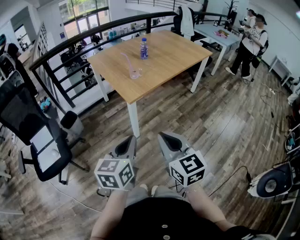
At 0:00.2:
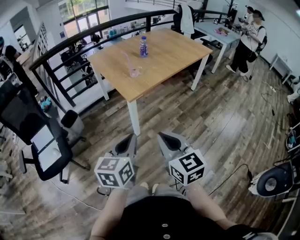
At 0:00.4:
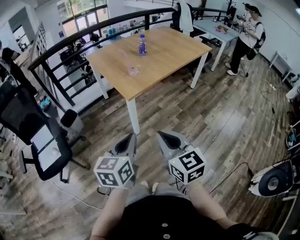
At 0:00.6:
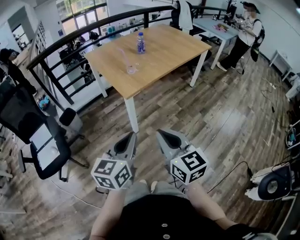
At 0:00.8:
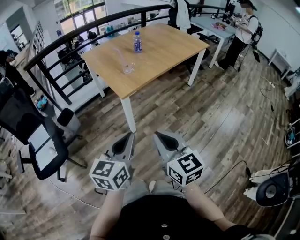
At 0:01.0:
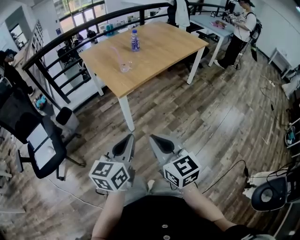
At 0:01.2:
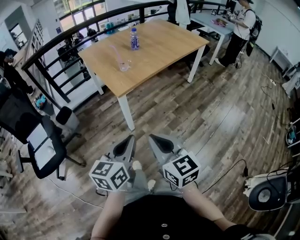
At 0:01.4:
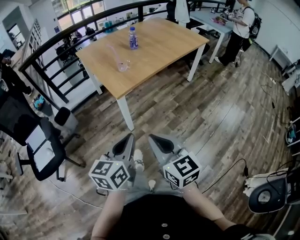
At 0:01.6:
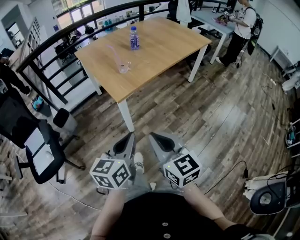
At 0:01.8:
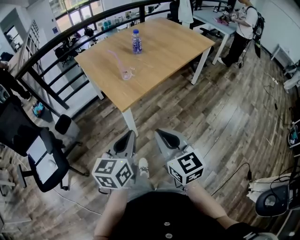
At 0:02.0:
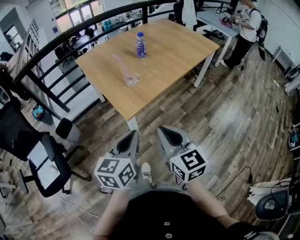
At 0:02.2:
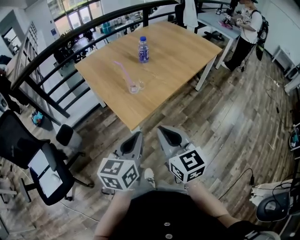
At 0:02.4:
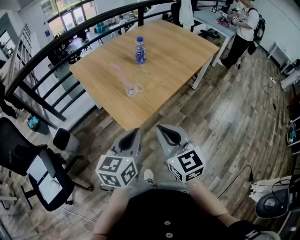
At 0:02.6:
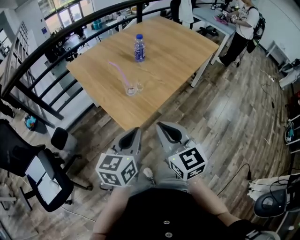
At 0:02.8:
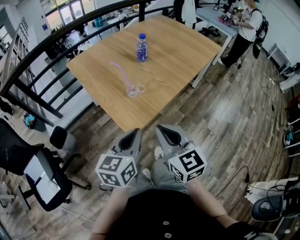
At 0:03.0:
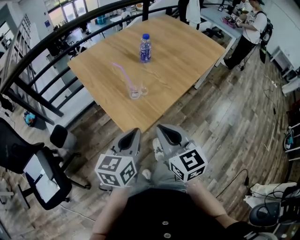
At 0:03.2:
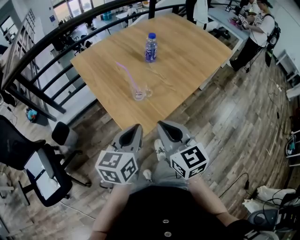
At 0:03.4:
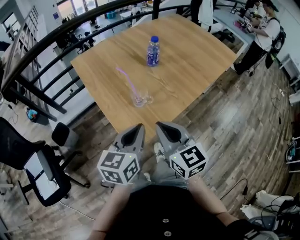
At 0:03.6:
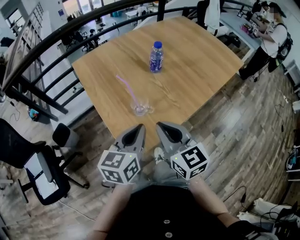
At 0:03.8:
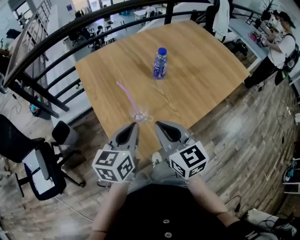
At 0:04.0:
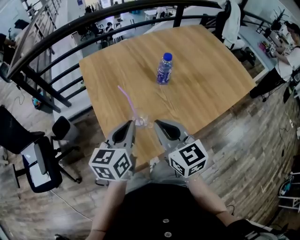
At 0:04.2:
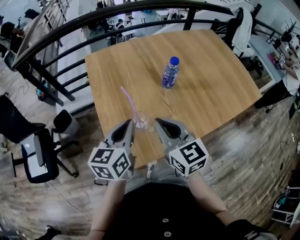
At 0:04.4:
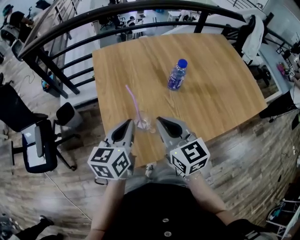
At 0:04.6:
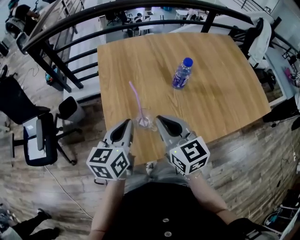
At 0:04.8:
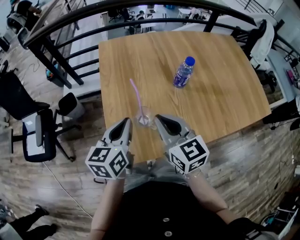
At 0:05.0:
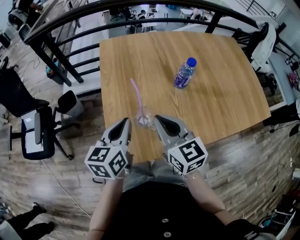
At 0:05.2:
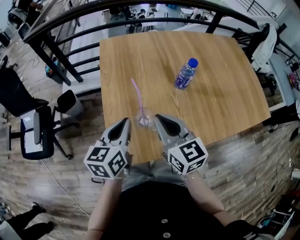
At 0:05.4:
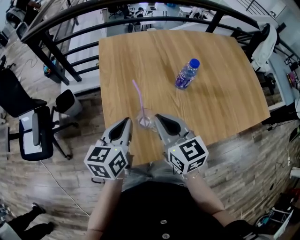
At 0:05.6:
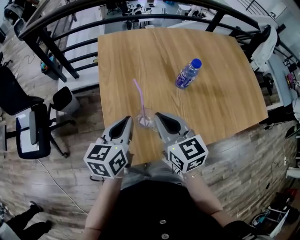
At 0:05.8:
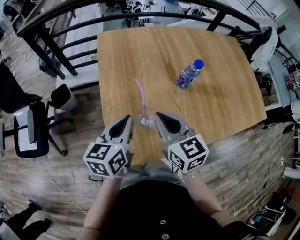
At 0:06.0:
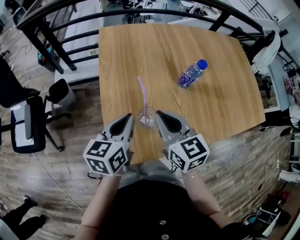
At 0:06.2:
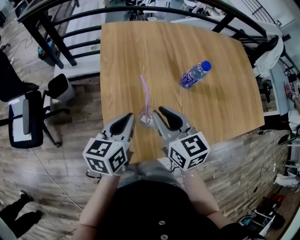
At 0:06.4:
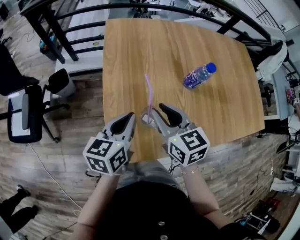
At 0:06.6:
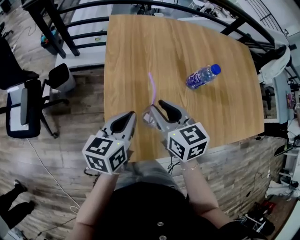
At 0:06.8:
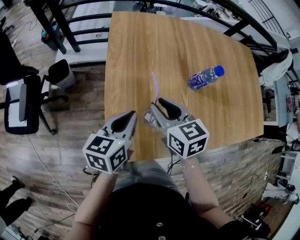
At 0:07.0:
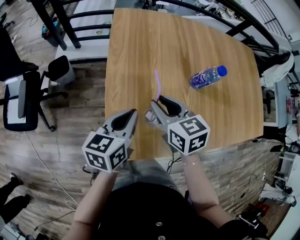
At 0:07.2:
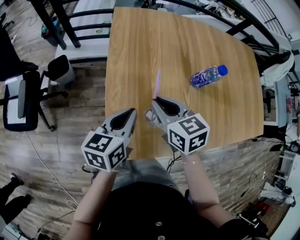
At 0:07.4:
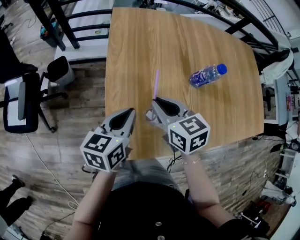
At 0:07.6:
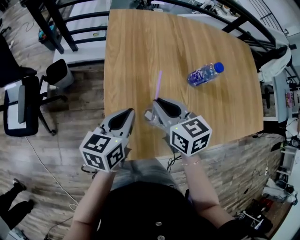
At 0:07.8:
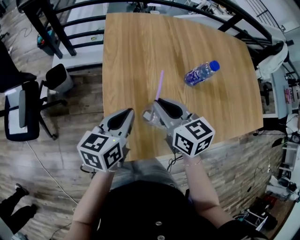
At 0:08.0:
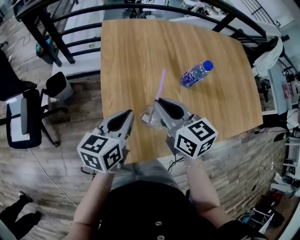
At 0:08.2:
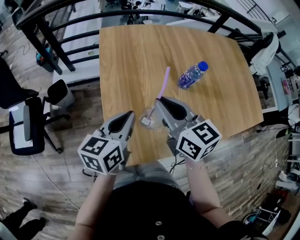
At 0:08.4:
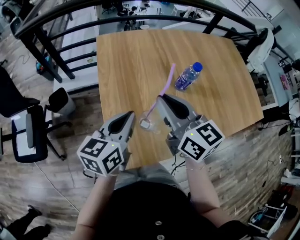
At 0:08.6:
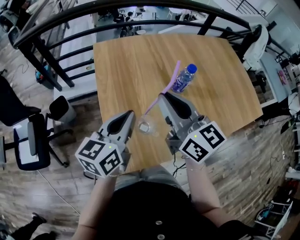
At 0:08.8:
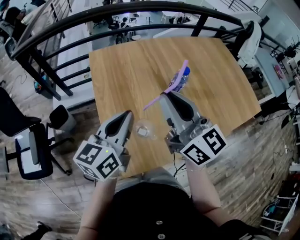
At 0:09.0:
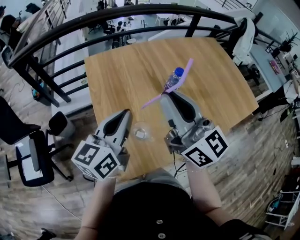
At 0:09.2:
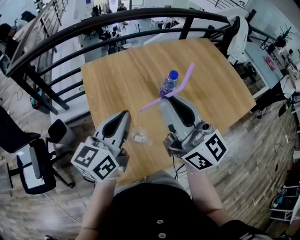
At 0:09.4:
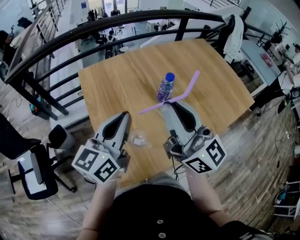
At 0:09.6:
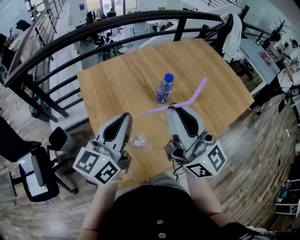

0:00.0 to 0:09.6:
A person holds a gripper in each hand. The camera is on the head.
0:00.0 to 0:01.6: The left gripper moves forward and to the right, about 10 cm. The right gripper goes roughly 10 cm forward.
0:01.6 to 0:03.2: The grippers both shift forward by roughly 35 cm.
0:03.2 to 0:04.8: The left gripper moves about 20 cm, and rotates about 30 degrees; the right gripper shifts by about 25 cm, and swivels roughly 30 degrees.
0:04.8 to 0:06.4: The right gripper moves forward, about 5 cm, and opens its fingers, while the left gripper changes place by about 5 cm.
0:06.4 to 0:08.0: The grippers stay close to where they were, moving slightly.
0:08.0 to 0:09.6: The left gripper goes about 15 cm upward, and changes its angle by approximately 30 degrees, while the right gripper travels upward and to the right by roughly 25 cm, and tilts its fingers about 50 degrees upward.

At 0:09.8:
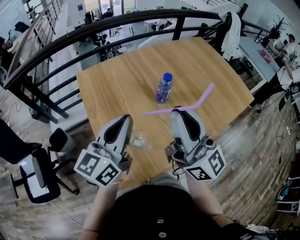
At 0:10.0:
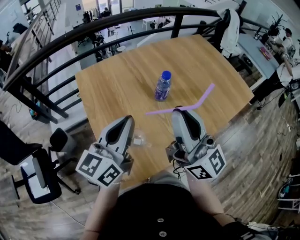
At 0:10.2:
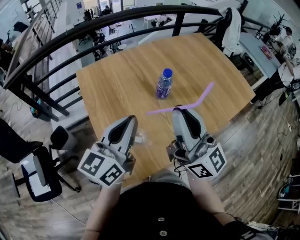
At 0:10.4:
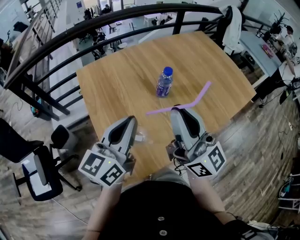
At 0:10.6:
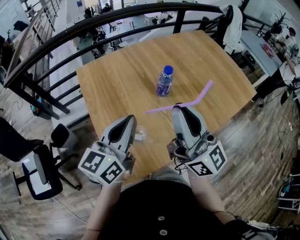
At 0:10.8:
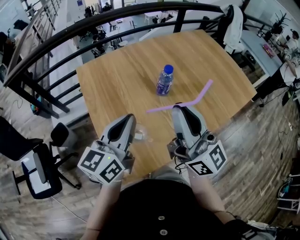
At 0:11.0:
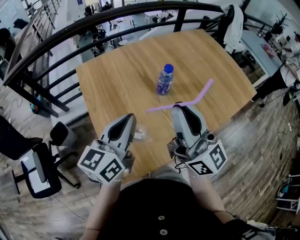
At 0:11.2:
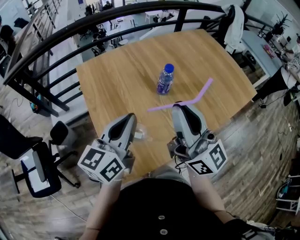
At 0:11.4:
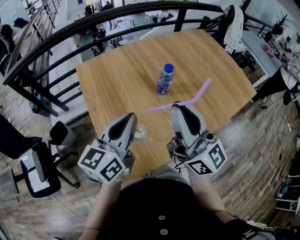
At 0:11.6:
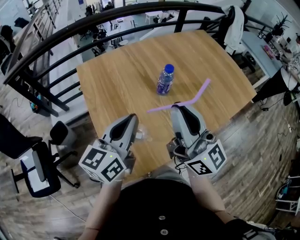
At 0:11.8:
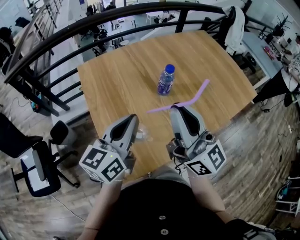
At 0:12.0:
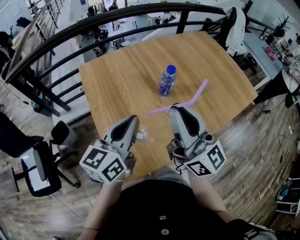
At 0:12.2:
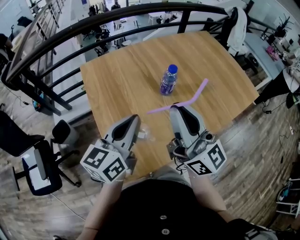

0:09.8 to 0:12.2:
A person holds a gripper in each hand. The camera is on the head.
0:09.8 to 0:12.2: There are only small adjustments of the grippers.

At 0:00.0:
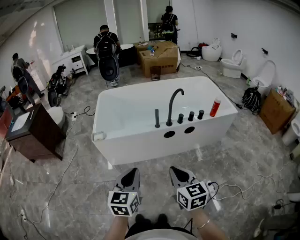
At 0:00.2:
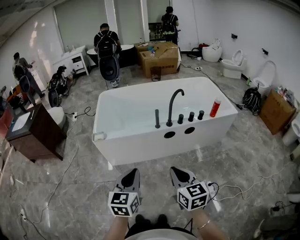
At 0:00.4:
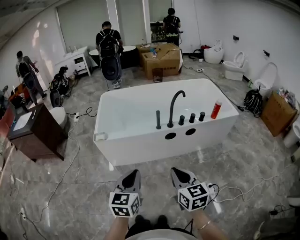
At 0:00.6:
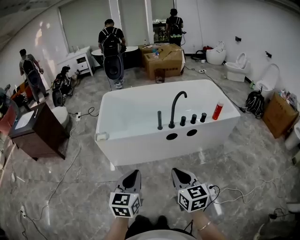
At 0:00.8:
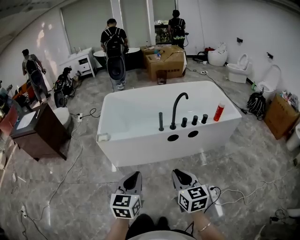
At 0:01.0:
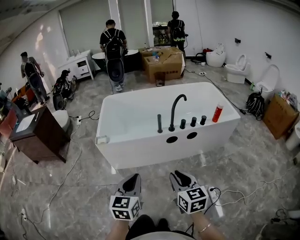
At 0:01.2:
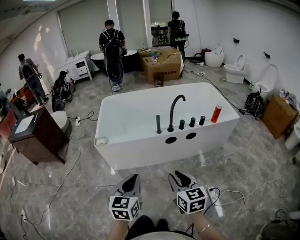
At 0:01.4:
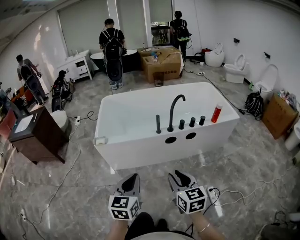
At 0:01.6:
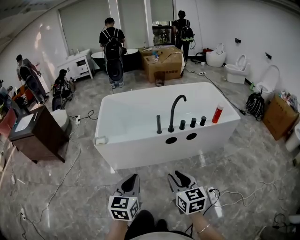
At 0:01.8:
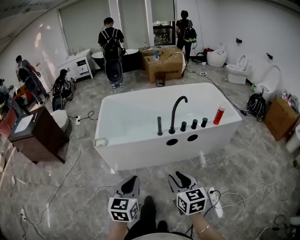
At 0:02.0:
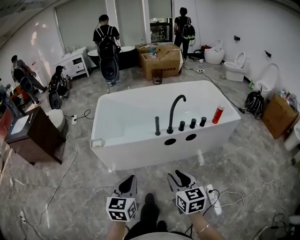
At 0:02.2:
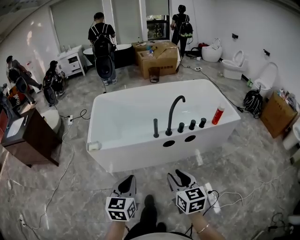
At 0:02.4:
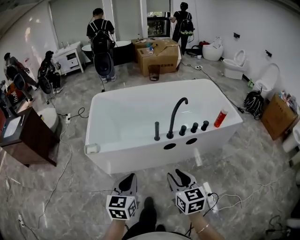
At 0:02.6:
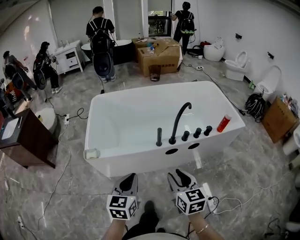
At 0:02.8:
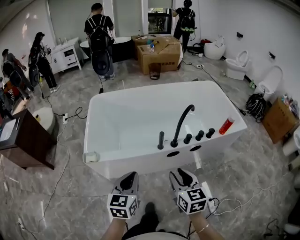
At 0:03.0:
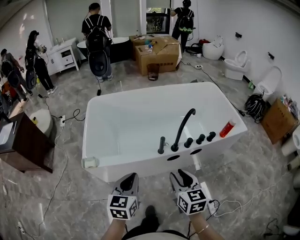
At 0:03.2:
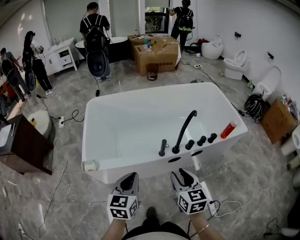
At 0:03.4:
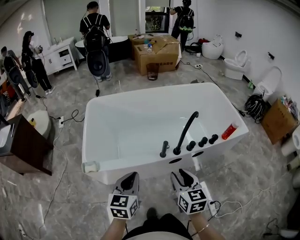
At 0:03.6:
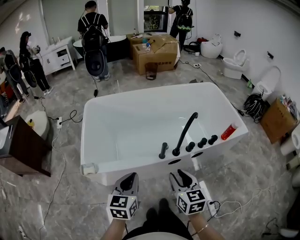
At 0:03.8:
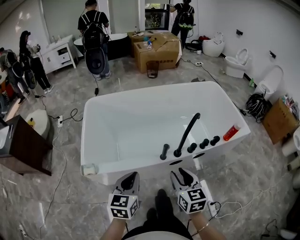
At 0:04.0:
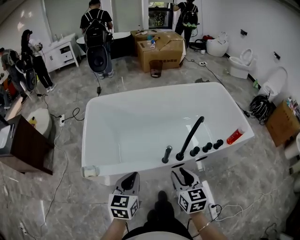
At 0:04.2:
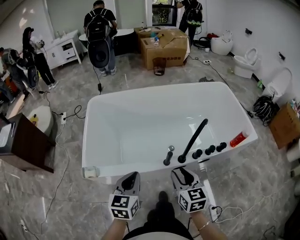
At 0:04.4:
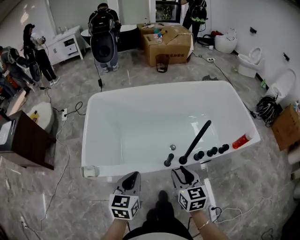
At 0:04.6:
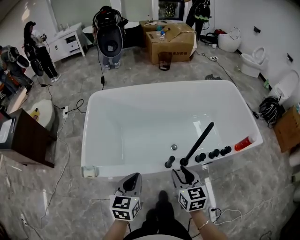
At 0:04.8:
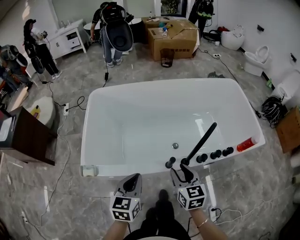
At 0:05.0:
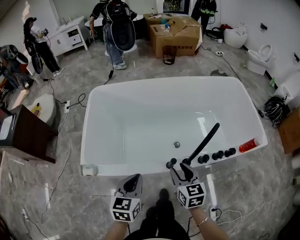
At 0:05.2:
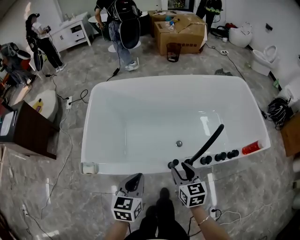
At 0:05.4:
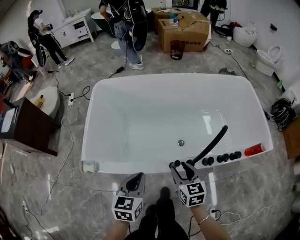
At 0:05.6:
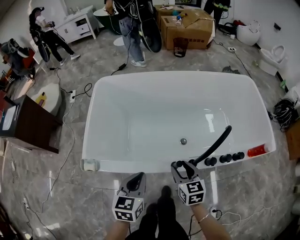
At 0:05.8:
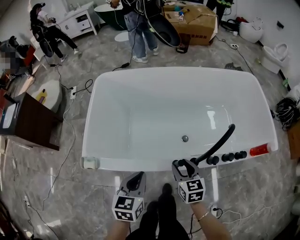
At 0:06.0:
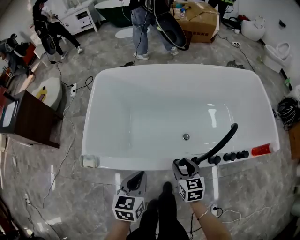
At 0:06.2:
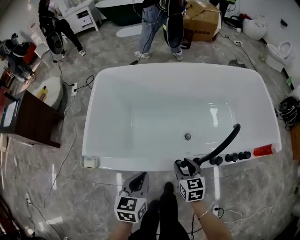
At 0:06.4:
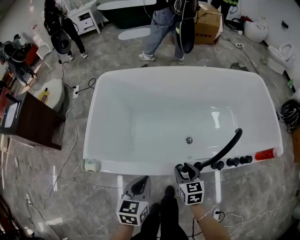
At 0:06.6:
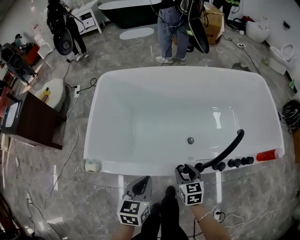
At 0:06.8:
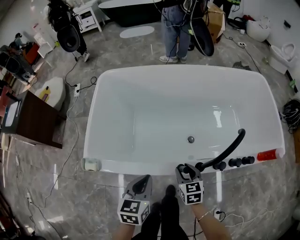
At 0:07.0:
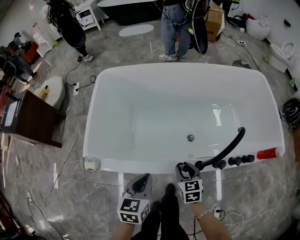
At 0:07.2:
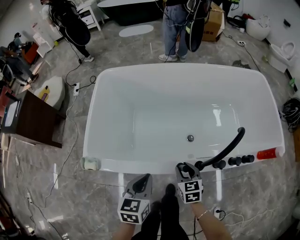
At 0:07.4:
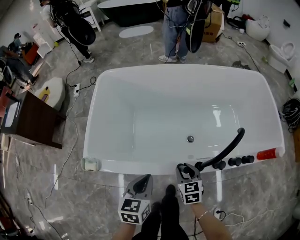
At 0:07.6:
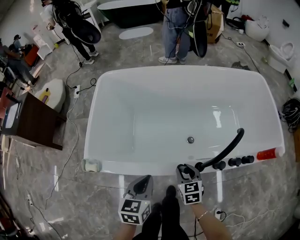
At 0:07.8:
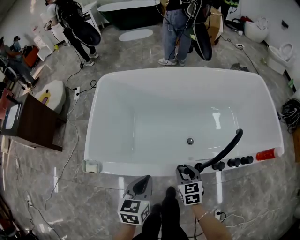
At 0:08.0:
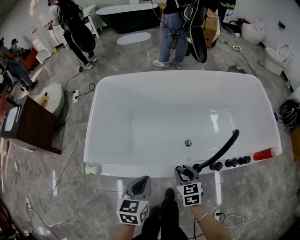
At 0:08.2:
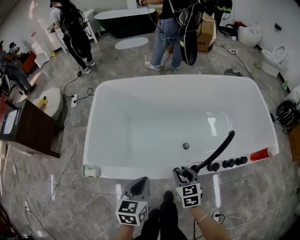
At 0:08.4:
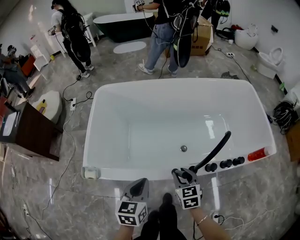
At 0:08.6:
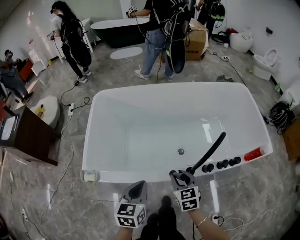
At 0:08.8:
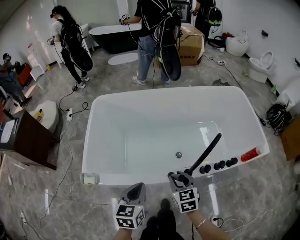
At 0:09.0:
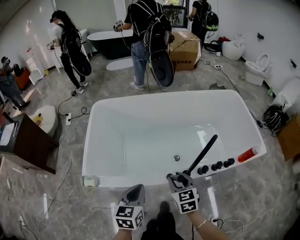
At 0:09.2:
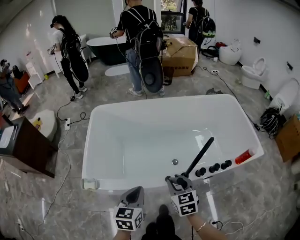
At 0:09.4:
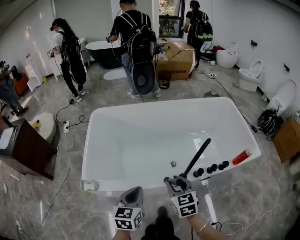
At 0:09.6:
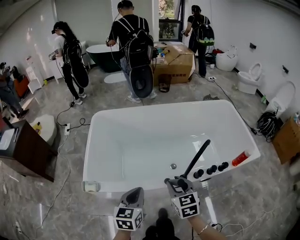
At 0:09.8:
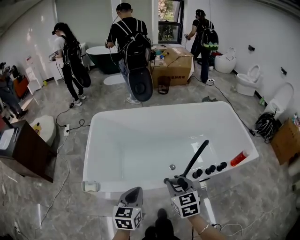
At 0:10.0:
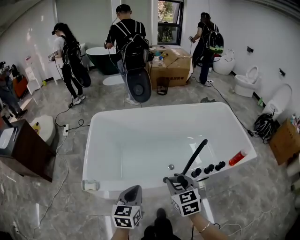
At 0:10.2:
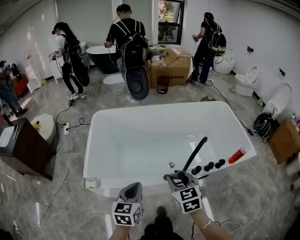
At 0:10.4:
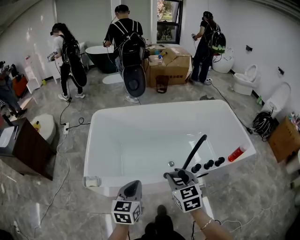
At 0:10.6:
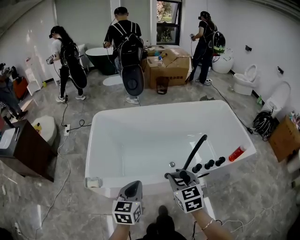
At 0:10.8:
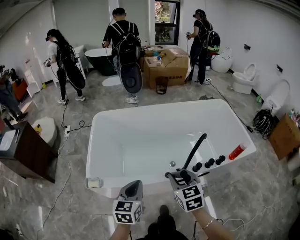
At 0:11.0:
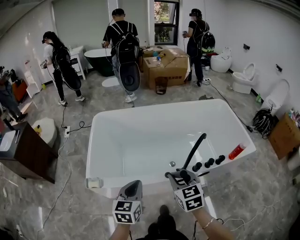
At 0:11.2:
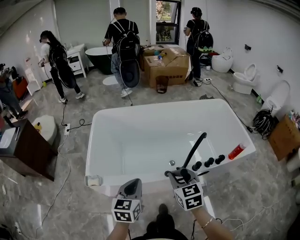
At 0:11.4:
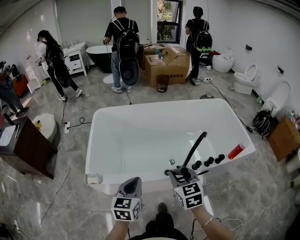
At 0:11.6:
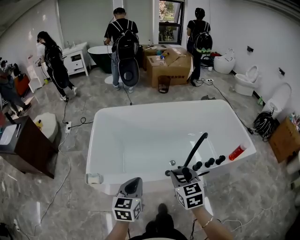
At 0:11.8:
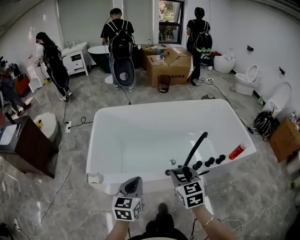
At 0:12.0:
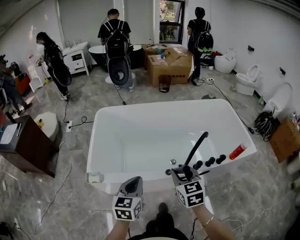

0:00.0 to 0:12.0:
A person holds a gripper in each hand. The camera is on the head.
0:00.0 to 0:01.6: The right gripper opens its fingers.
0:01.6 to 0:03.0: Both grippers are carried forward, roughly 40 cm.
0:03.0 to 0:04.4: The two grippers go some 25 cm forward.
0:04.4 to 0:06.0: The two grippers go approximately 20 cm downward and forward.
0:06.0 to 0:07.6: The right gripper travels downward by roughly 5 cm.
0:07.6 to 0:09.0: The grippers both shift upward and backward by roughly 15 cm.
0:09.0 to 0:10.4: The right gripper travels upward and backward by some 20 cm, while the left gripper goes some 10 cm backward and upward.
0:10.4 to 0:12.0: There are only small adjustments of the grippers.
